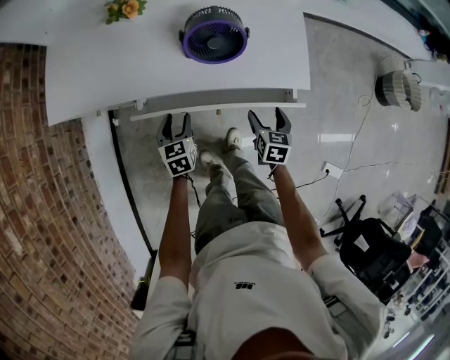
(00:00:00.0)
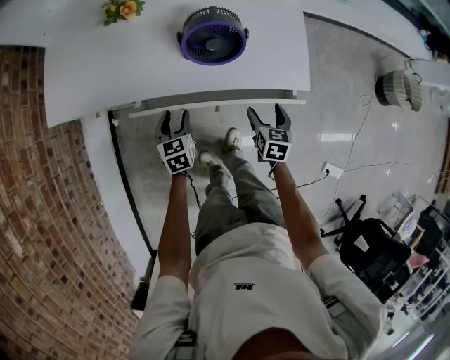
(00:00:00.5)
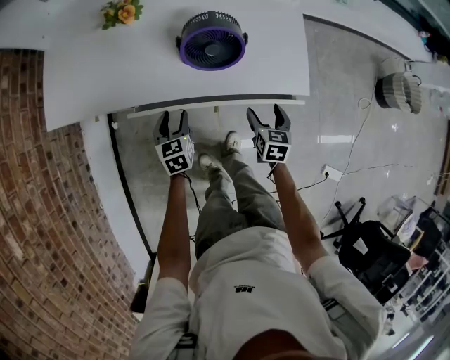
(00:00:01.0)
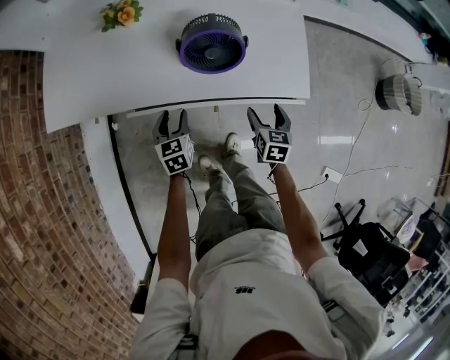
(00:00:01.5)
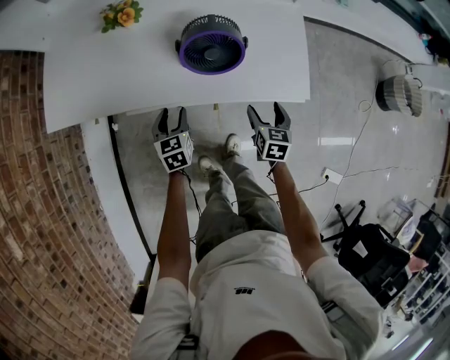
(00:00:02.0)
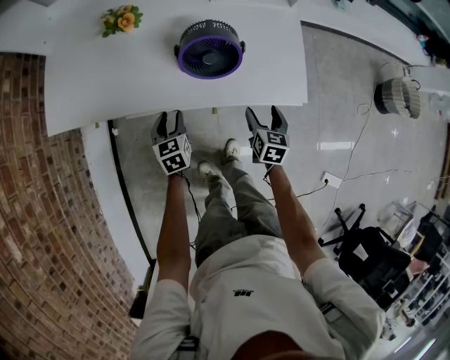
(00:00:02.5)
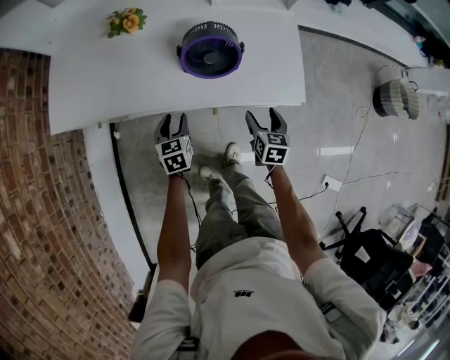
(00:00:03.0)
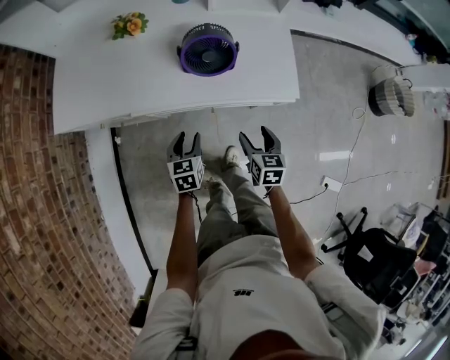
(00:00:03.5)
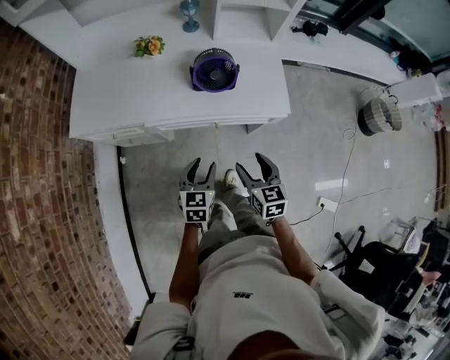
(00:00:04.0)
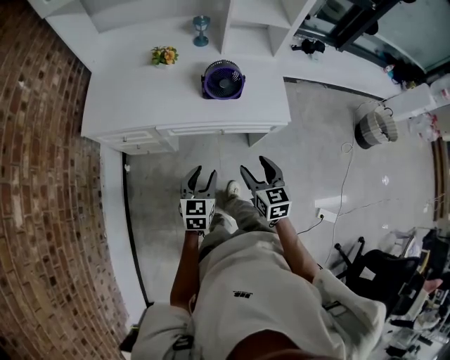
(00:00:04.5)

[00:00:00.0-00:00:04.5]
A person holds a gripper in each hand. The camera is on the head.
00:00:00.0 to 00:00:02.0: The two grippers go approximately 5 cm forward.
00:00:02.0 to 00:00:04.5: The left gripper heads backward and upward, covering approximately 30 cm, and swivels some 20 degrees, while the right gripper travels upward, backward and to the left by roughly 30 cm, and swivels approximately 20 degrees.

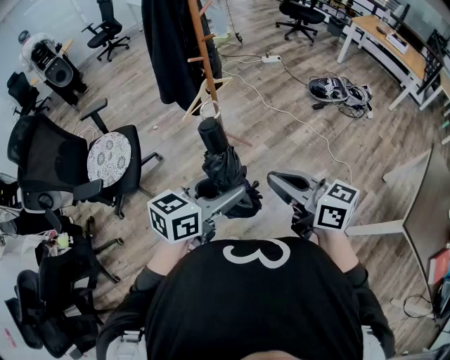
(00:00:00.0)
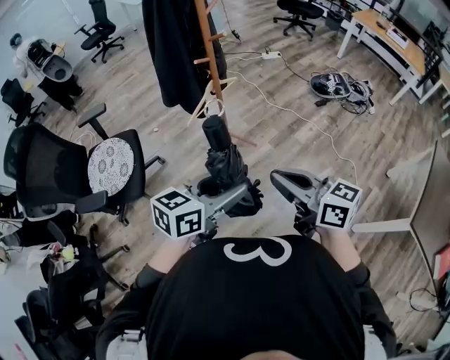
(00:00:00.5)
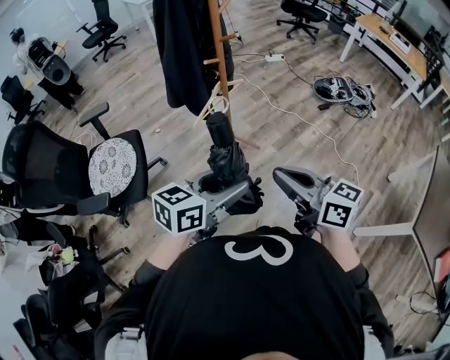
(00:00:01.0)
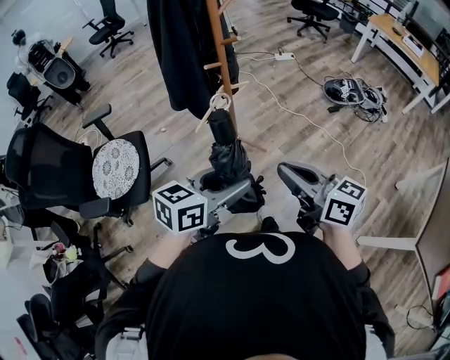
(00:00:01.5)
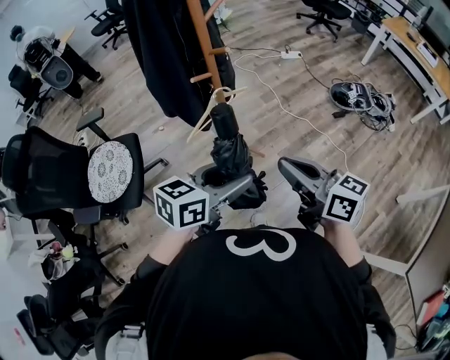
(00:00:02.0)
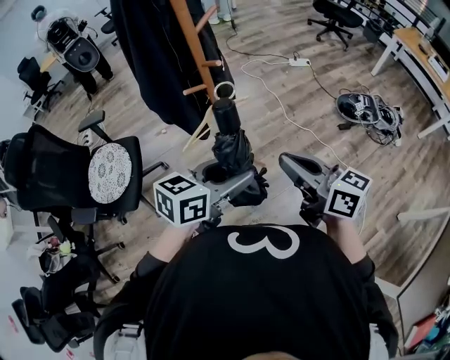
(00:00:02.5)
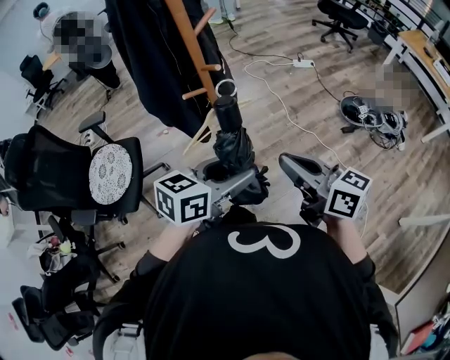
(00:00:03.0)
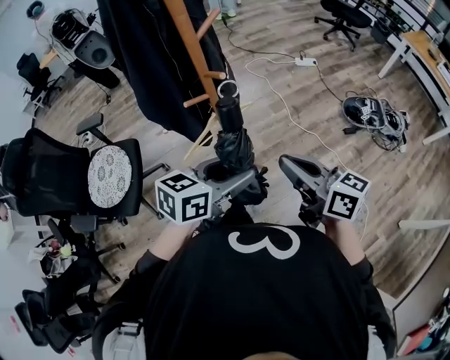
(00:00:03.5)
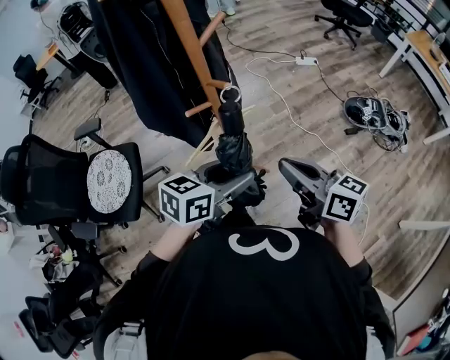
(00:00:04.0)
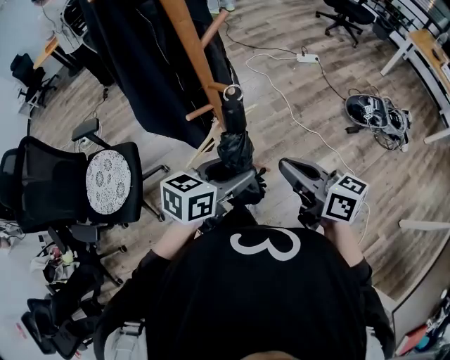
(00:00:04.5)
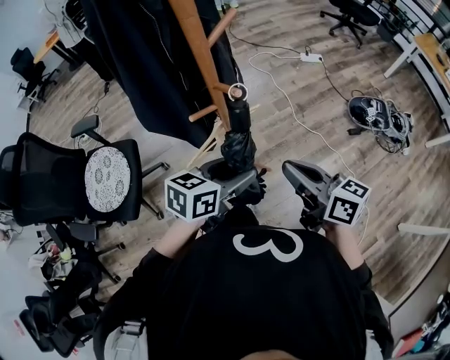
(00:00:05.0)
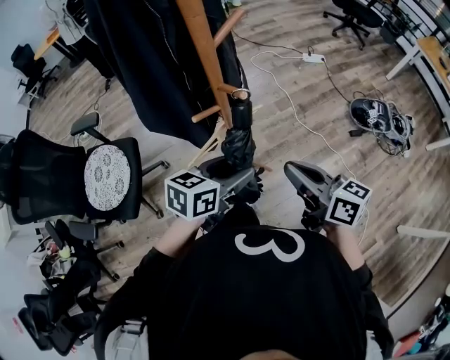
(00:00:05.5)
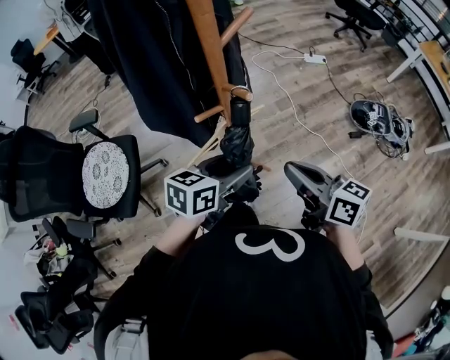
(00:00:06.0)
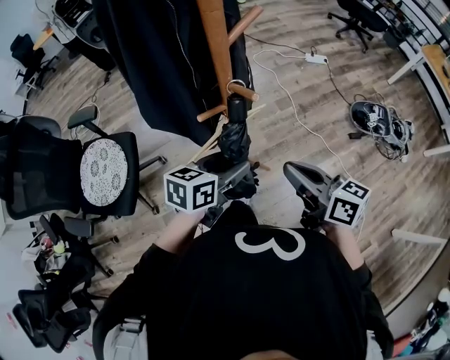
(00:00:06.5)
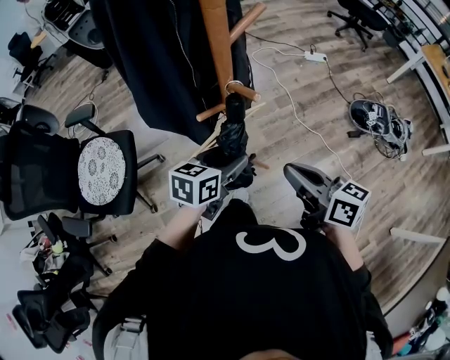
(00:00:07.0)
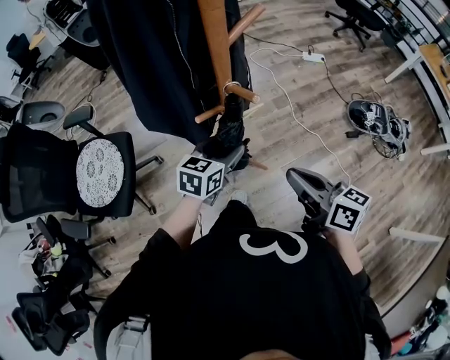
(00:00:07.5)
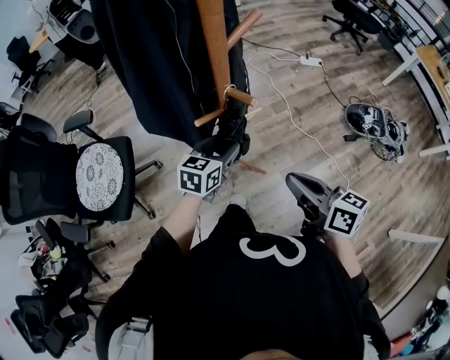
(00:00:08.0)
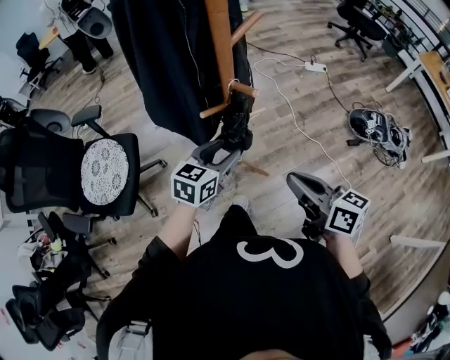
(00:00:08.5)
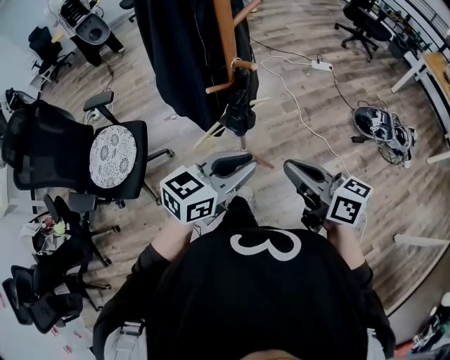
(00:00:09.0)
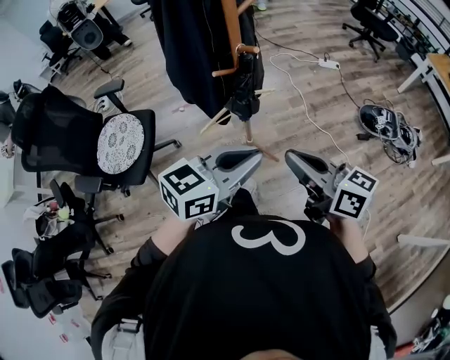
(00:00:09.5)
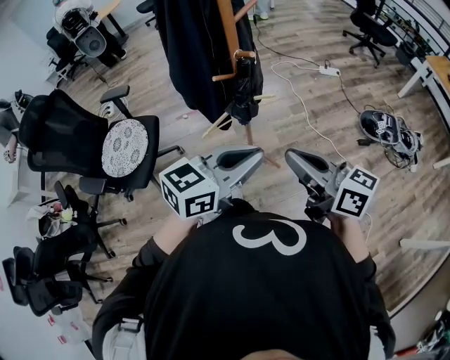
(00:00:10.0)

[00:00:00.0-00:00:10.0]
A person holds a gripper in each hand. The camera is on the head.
00:00:00.0 to 00:00:02.0: The grippers both shift forward by approximately 25 cm.
00:00:02.0 to 00:00:04.0: Both grippers travel together forward, approximately 15 cm.
00:00:04.0 to 00:00:06.0: The left gripper heads forward and downward, covering roughly 10 cm. Meanwhile the right gripper shifts by about 5 cm.
00:00:06.0 to 00:00:08.0: The left gripper goes some 10 cm forward and downward.
00:00:08.0 to 00:00:10.0: The right gripper heads backward and upward, covering some 20 cm, and turns by about 20 degrees. Meanwhile the left gripper travels backward and upward by roughly 35 cm, swivels about 20 degrees, and closes its fingers.

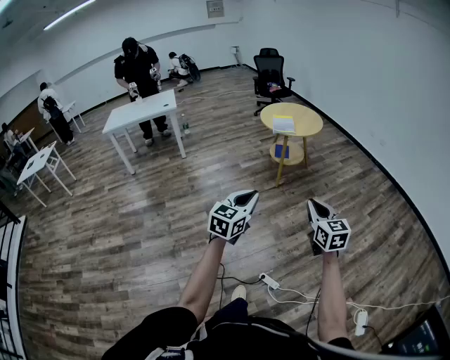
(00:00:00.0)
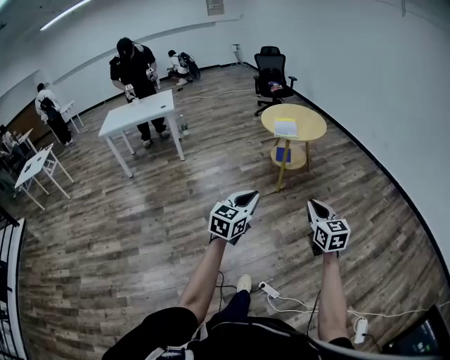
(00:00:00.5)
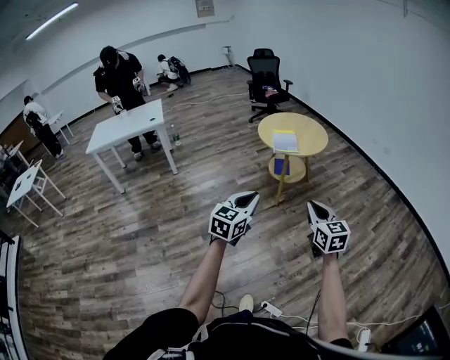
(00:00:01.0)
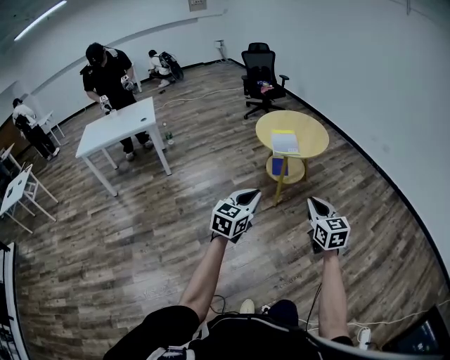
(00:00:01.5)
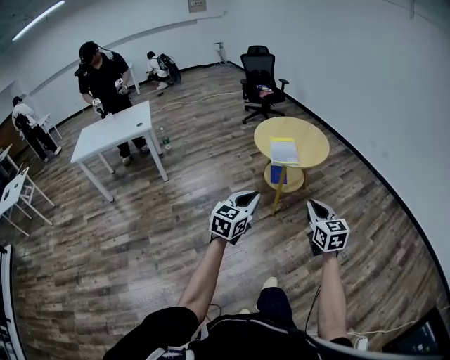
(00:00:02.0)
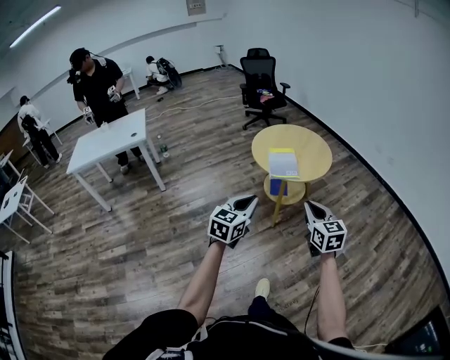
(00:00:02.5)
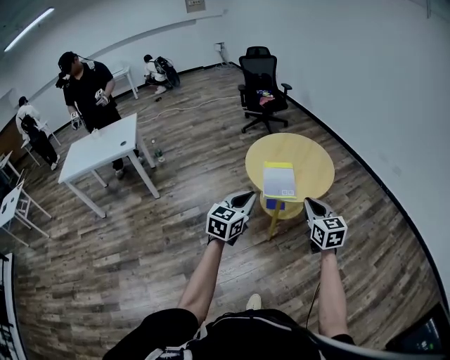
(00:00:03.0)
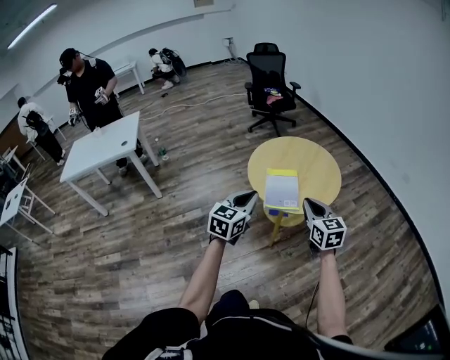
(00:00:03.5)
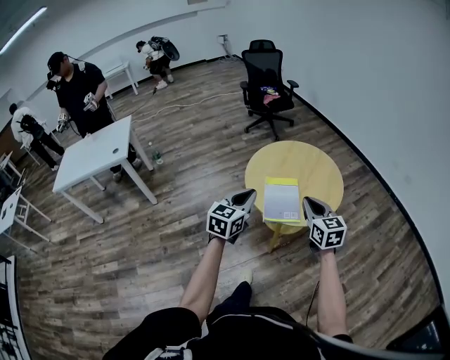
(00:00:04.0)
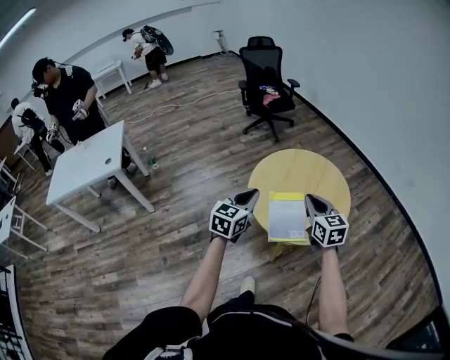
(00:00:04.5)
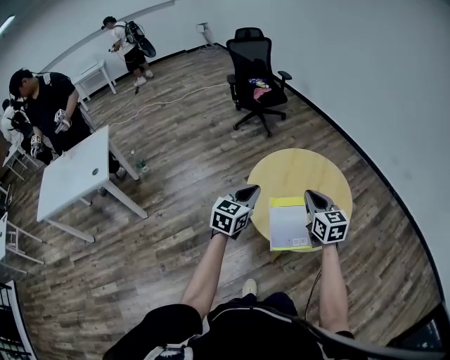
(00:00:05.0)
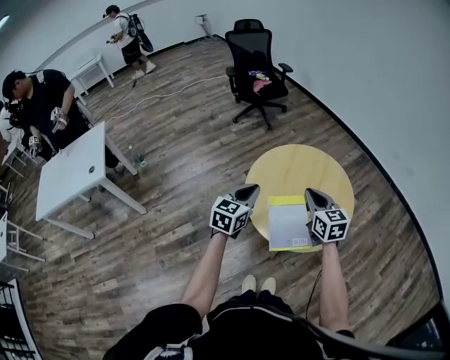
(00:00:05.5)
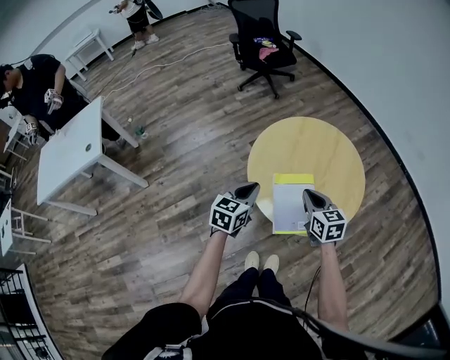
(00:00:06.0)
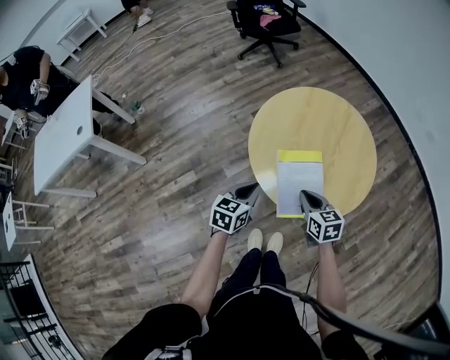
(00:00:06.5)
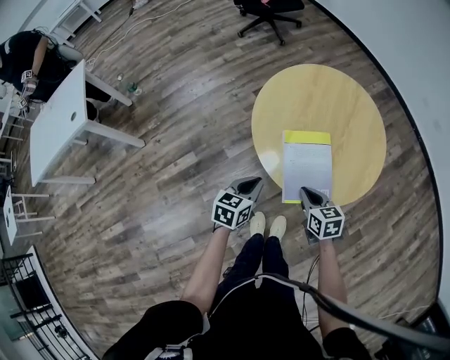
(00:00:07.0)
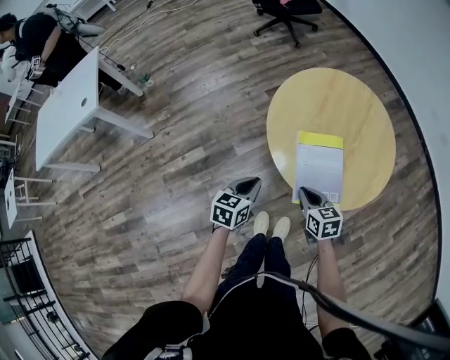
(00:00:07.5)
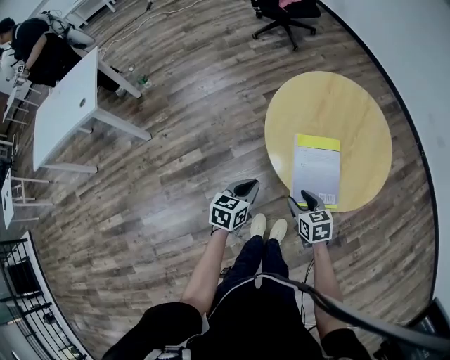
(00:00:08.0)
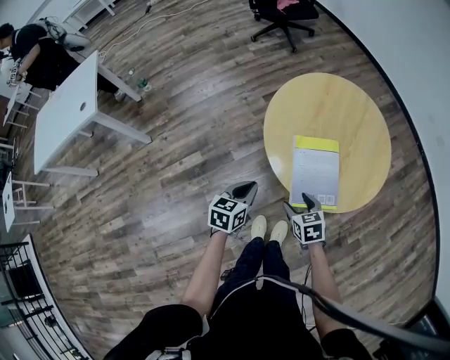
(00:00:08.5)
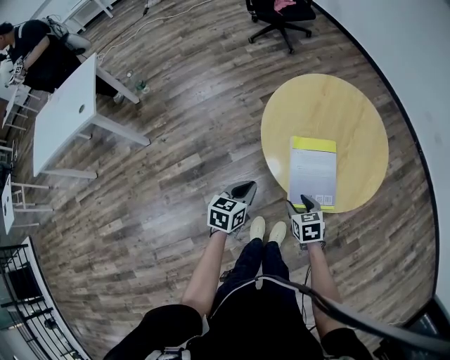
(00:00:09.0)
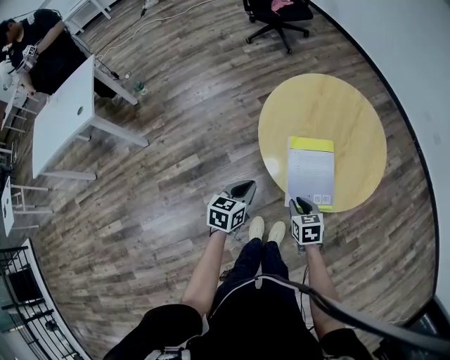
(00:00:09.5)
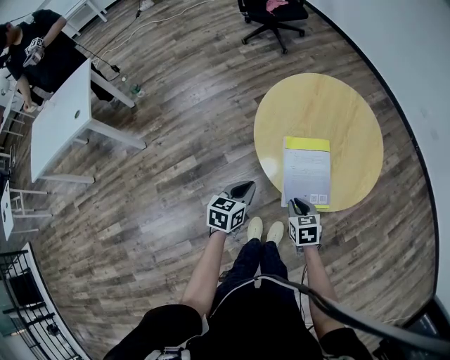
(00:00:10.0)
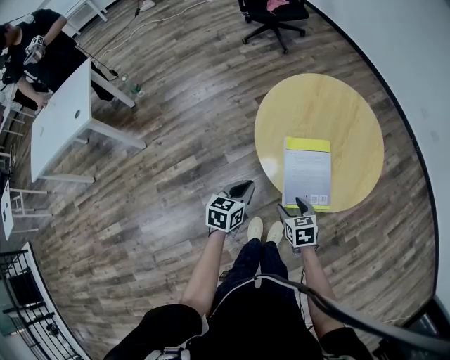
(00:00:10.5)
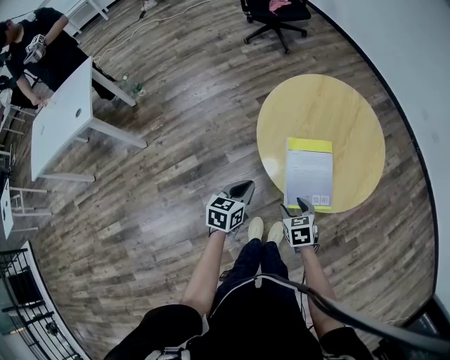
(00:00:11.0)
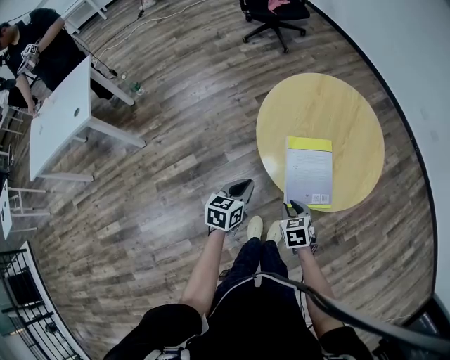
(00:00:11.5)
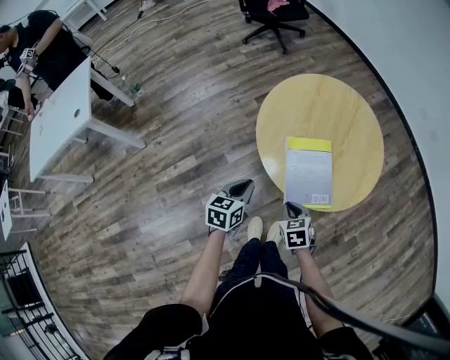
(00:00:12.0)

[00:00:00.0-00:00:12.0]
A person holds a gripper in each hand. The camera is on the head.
00:00:00.0 to 00:00:02.0: Both grippers move forward, about 40 cm.
00:00:02.0 to 00:00:04.0: The two grippers travel together, forward, approximately 40 cm.
00:00:04.0 to 00:00:06.0: The two grippers go approximately 20 cm forward and downward.
00:00:06.0 to 00:00:08.0: The left gripper shifts approximately 15 cm downward and backward; the right gripper goes approximately 20 cm downward, backward and to the left, rotates about 20 degrees, and opens its fingers.
00:00:08.0 to 00:00:10.0: The right gripper closes up.
00:00:10.0 to 00:00:12.0: The right gripper opens, then closes again.
